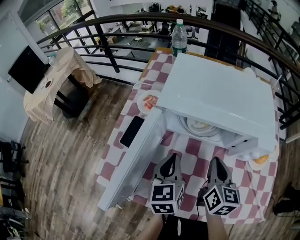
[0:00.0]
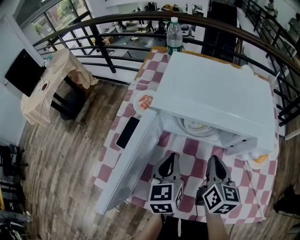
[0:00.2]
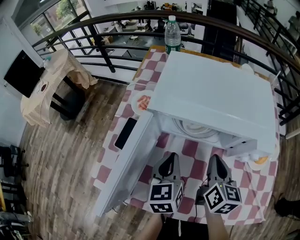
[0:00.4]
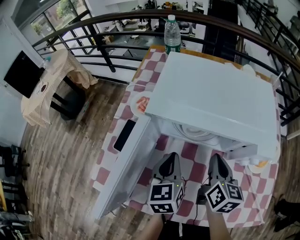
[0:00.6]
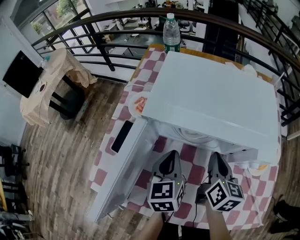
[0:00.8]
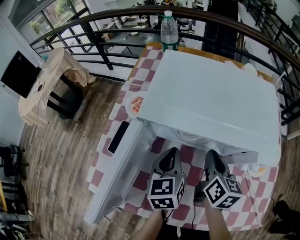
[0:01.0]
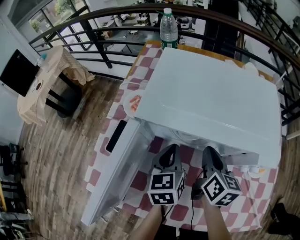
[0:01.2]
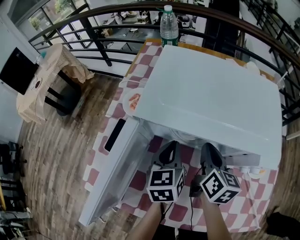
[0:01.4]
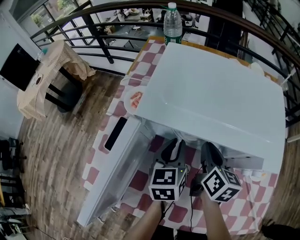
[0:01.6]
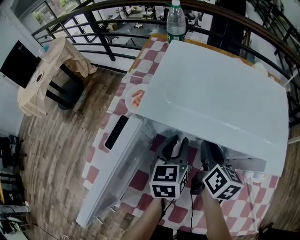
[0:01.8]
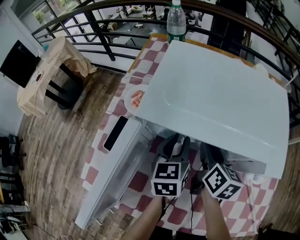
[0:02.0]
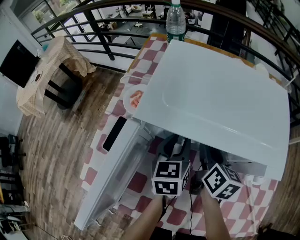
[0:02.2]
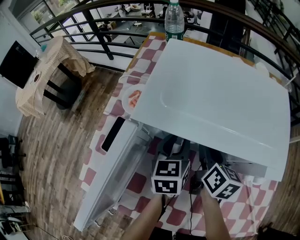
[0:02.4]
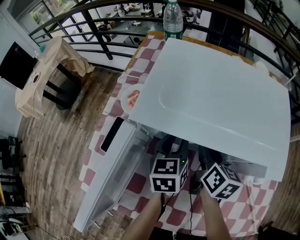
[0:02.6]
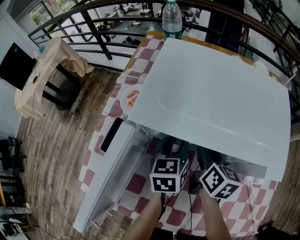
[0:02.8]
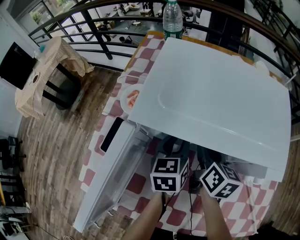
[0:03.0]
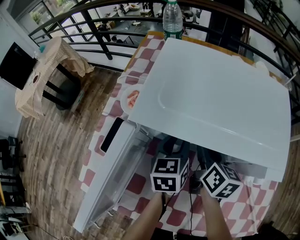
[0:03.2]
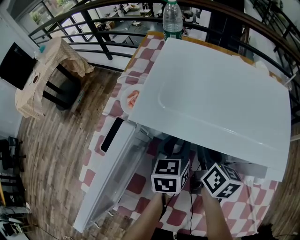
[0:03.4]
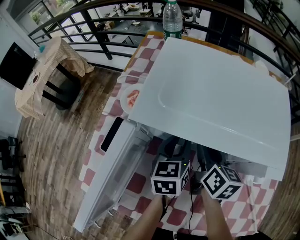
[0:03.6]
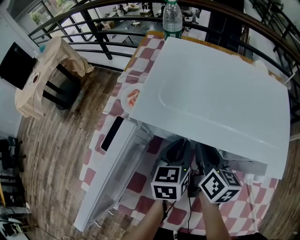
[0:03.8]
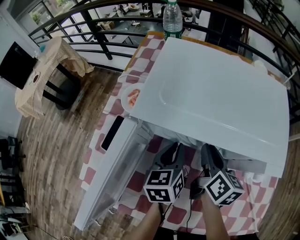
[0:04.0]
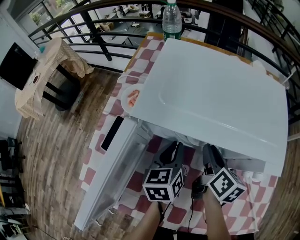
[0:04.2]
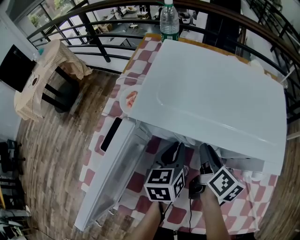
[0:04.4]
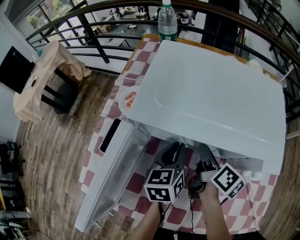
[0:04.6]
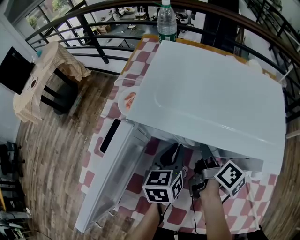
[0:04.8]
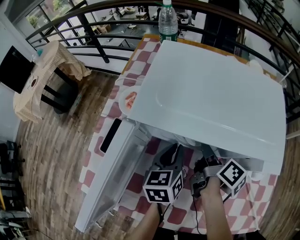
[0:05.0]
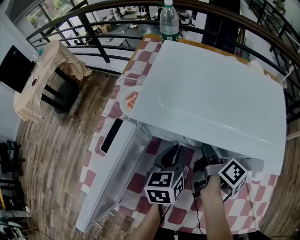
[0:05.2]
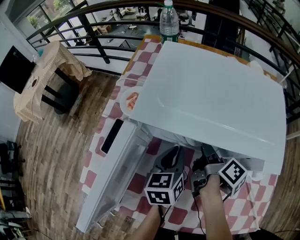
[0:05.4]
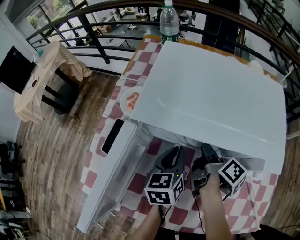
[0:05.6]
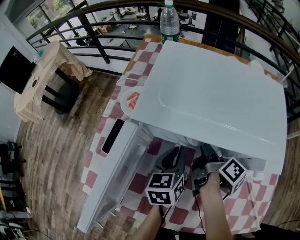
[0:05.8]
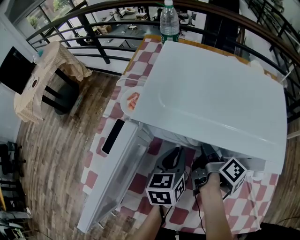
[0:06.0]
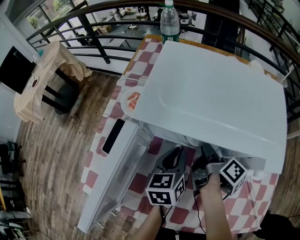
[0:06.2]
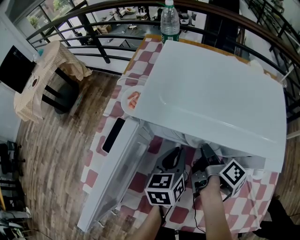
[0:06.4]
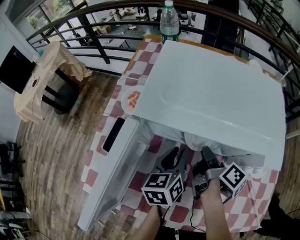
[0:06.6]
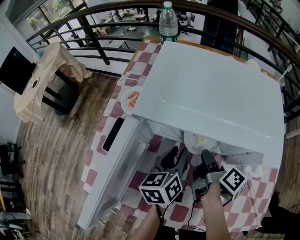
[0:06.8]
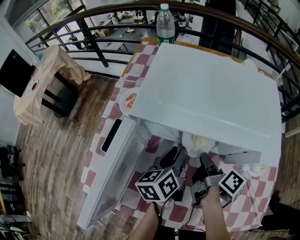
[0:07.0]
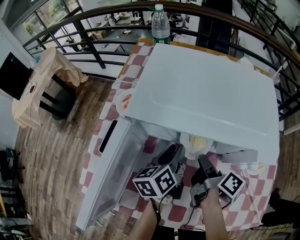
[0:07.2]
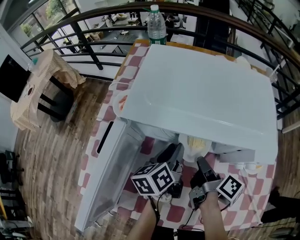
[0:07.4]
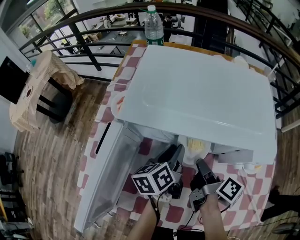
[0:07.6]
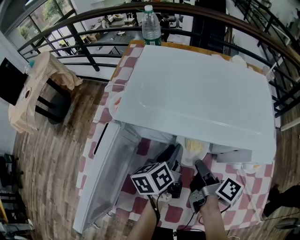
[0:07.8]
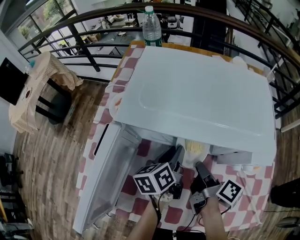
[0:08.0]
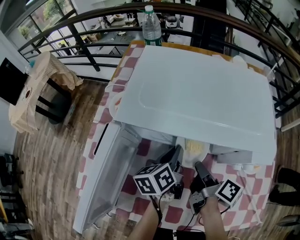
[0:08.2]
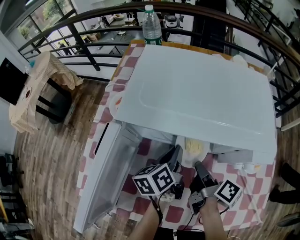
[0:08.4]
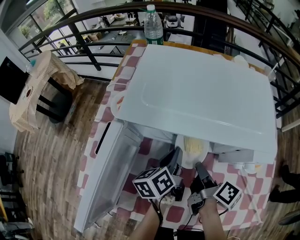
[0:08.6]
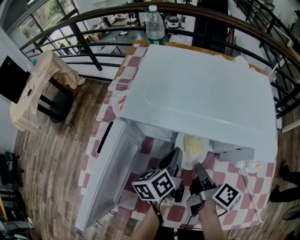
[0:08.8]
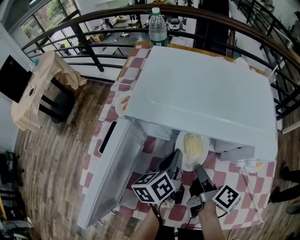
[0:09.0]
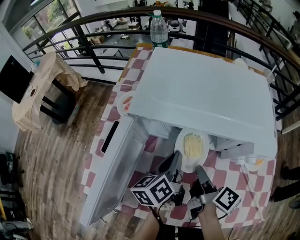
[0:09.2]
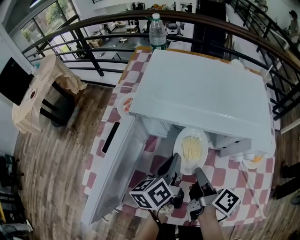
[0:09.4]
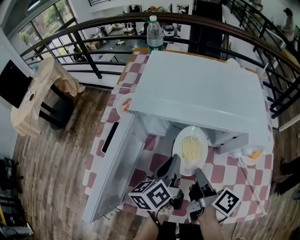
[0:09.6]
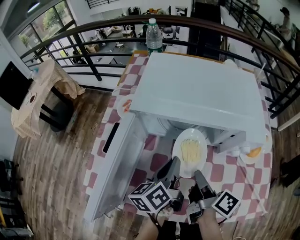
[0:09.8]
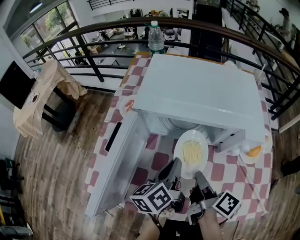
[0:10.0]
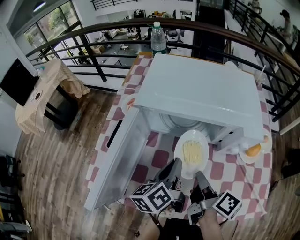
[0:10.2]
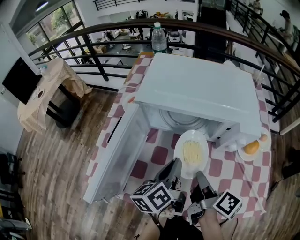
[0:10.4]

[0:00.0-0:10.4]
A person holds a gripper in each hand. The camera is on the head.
0:00.0 to 0:01.4: The grippers both shift forward by roughly 10 cm.
0:01.4 to 0:03.0: The right gripper shifts by some 5 cm, and opens its fingers. Meanwhile the left gripper changes place by about 5 cm, and opens.
0:03.0 to 0:04.4: The grippers move only a little.
0:04.4 to 0:06.0: The right gripper swivels about 40 degrees, and closes its fingers.
0:06.0 to 0:07.4: The right gripper travels backward by roughly 5 cm; the left gripper changes its angle by some 20 degrees.
0:07.4 to 0:09.0: The left gripper closes its fingers.
0:09.0 to 0:10.4: Both grippers move backward and upward, some 10 cm.

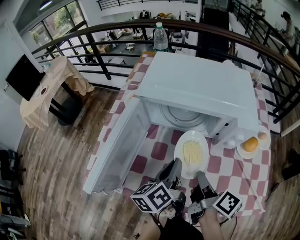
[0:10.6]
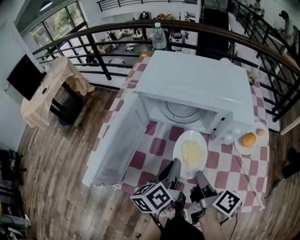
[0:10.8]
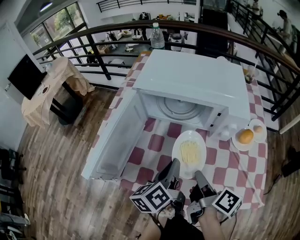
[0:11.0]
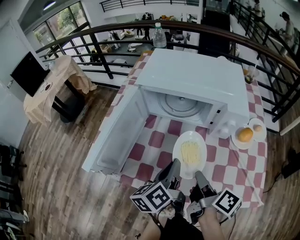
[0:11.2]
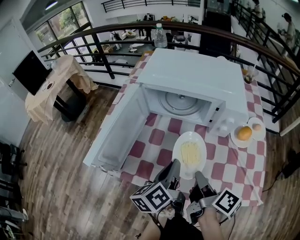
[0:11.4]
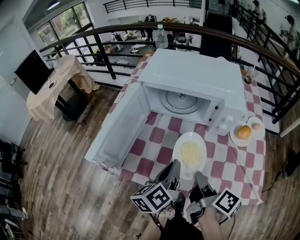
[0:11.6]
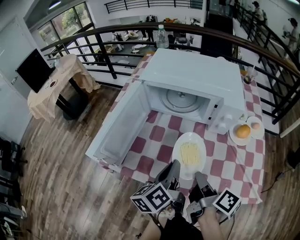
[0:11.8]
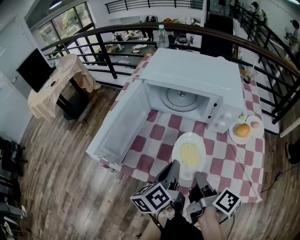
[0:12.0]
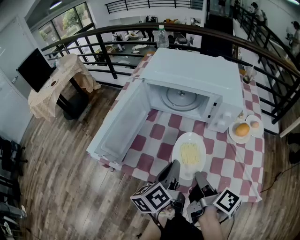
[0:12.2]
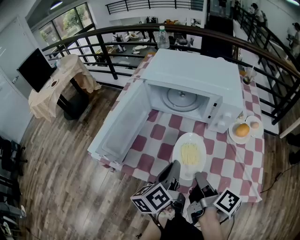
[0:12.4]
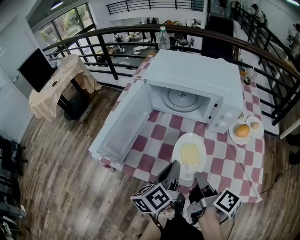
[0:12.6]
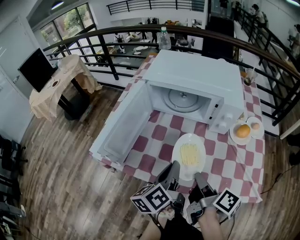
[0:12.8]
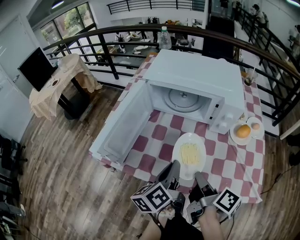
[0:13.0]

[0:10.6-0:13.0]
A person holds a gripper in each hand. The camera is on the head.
0:10.6 to 0:11.8: Both grippers travel together backward, some 10 cm.
0:11.8 to 0:13.0: The grippers make only small movements.

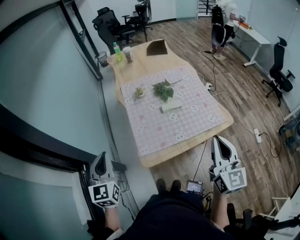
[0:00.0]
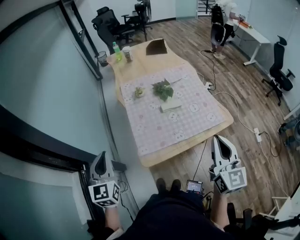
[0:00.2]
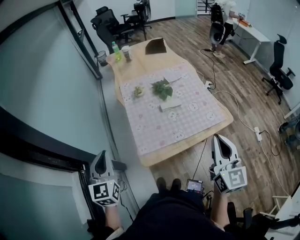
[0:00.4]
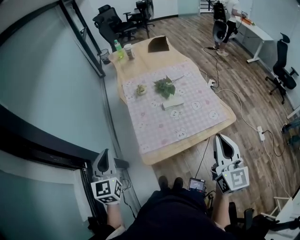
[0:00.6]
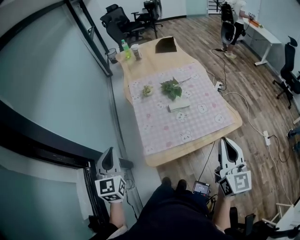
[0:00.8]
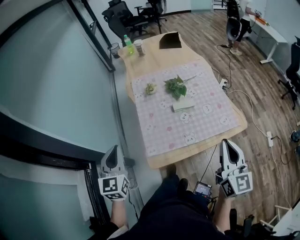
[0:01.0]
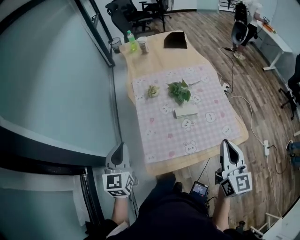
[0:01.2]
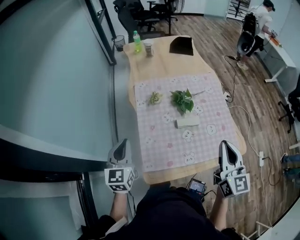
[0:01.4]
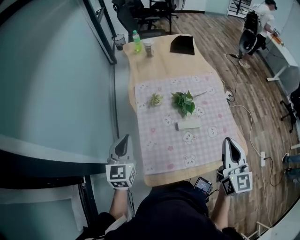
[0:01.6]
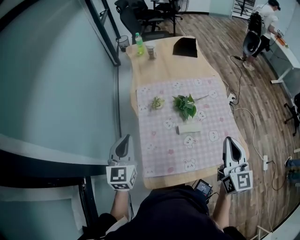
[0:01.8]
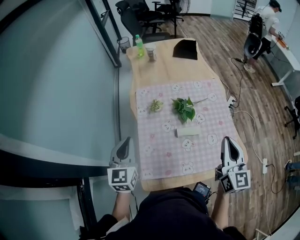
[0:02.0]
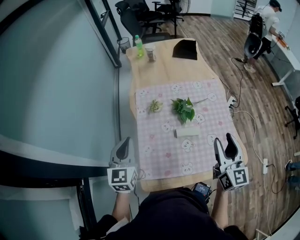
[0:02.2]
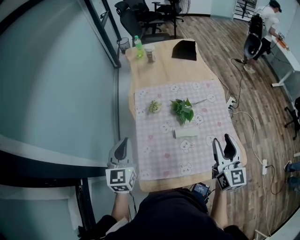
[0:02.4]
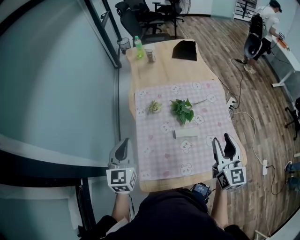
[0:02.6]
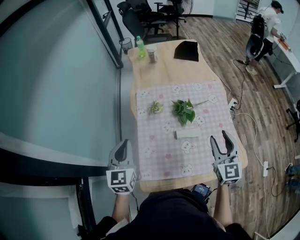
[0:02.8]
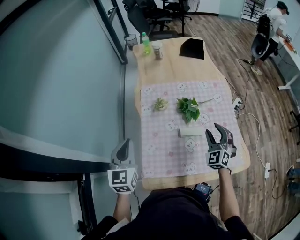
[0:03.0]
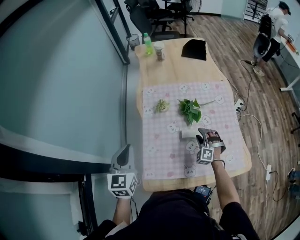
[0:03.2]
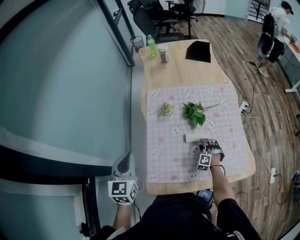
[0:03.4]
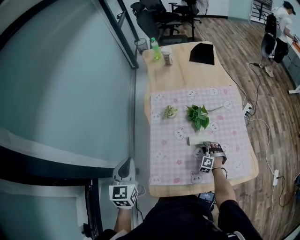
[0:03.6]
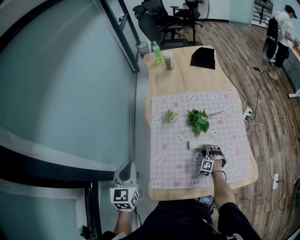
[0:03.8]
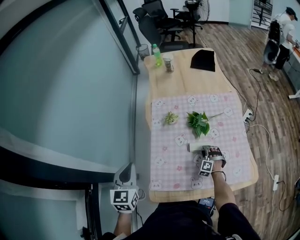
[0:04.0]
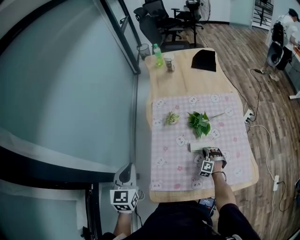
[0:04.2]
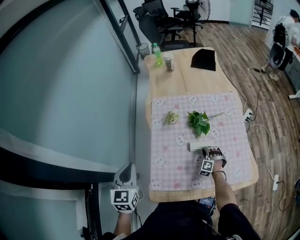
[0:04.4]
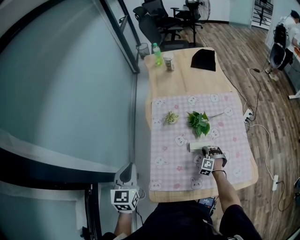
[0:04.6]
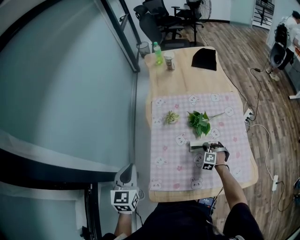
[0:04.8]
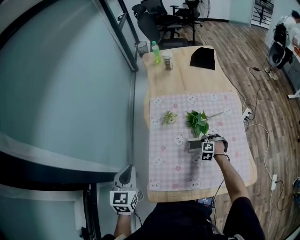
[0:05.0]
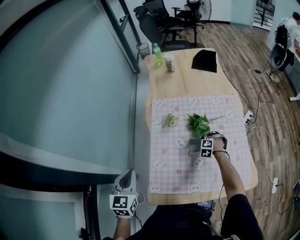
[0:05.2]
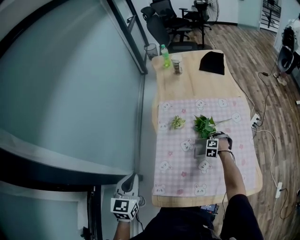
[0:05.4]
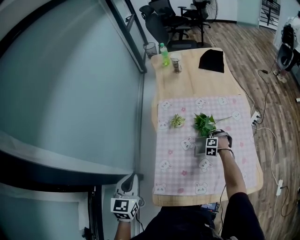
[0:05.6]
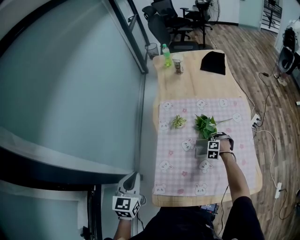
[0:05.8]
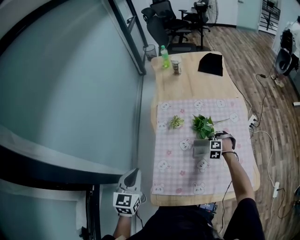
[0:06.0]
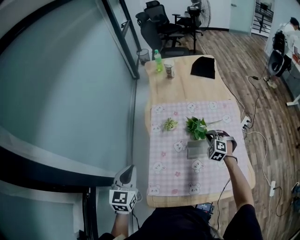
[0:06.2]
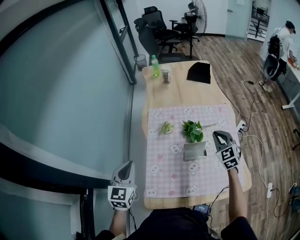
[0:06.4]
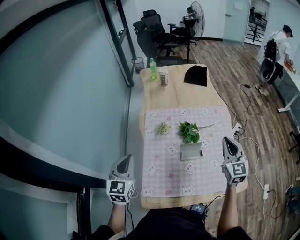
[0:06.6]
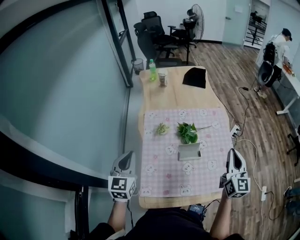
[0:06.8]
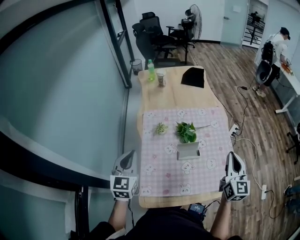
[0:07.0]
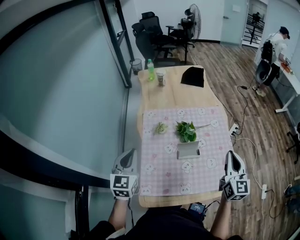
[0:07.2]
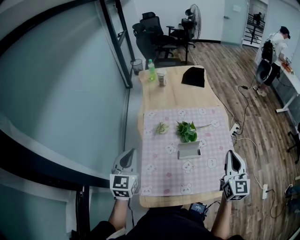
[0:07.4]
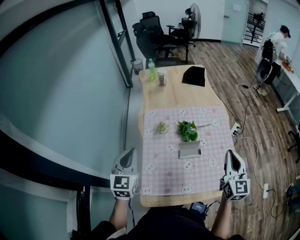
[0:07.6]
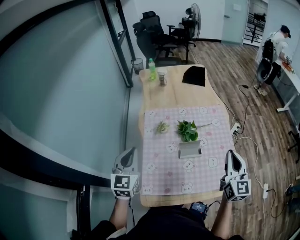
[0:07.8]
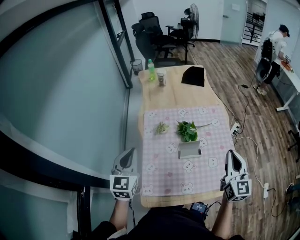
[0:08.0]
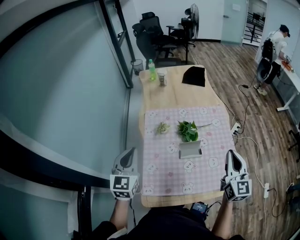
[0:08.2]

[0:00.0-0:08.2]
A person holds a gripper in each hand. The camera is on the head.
0:00.0 to 0:01.6: Both grippers move forward, approximately 25 cm.
0:01.6 to 0:03.2: The right gripper heads downward and forward, covering roughly 35 cm, rolls counterclockwise, seen from behind, by about 70 degrees, and opens its fingers.
0:03.2 to 0:05.0: The right gripper goes roughly 10 cm downward and forward, changes its angle by about 30 degrees, and closes its fingers.
0:05.0 to 0:06.6: The left gripper changes place by roughly 5 cm. Meanwhile the right gripper is displaced upward by approximately 35 cm, and tips its fingers upward by about 50 degrees.
0:06.6 to 0:08.2: The right gripper heads backward, covering approximately 10 cm.

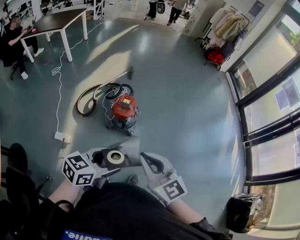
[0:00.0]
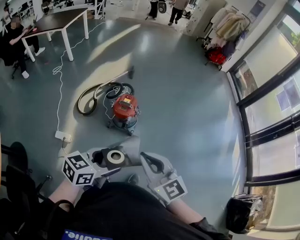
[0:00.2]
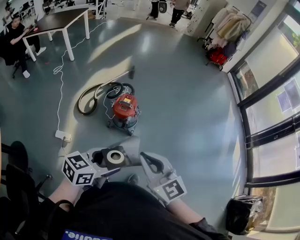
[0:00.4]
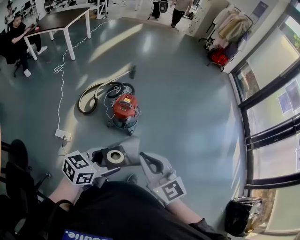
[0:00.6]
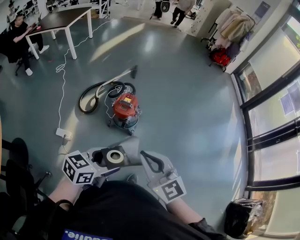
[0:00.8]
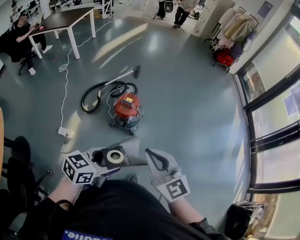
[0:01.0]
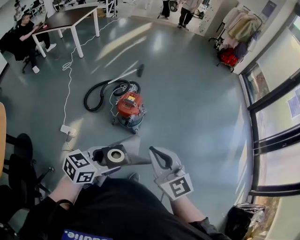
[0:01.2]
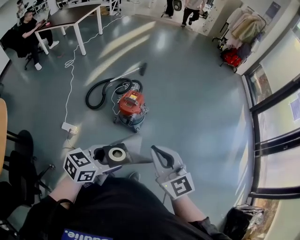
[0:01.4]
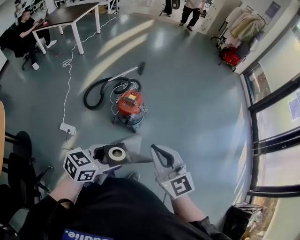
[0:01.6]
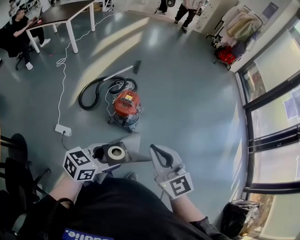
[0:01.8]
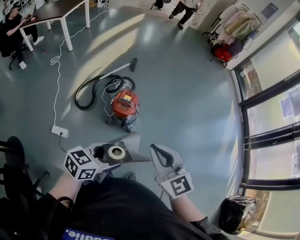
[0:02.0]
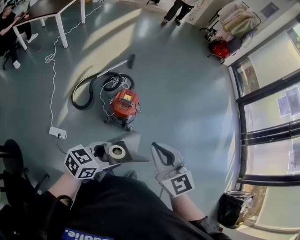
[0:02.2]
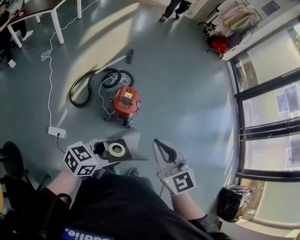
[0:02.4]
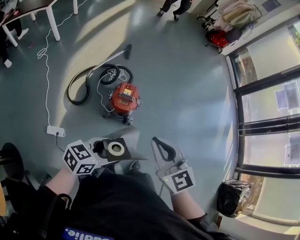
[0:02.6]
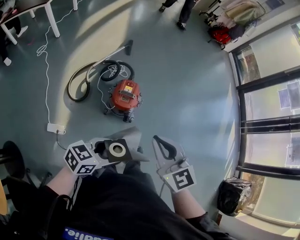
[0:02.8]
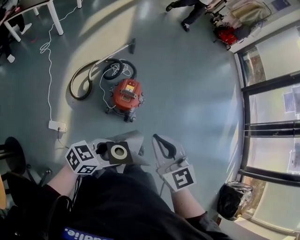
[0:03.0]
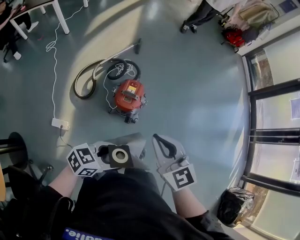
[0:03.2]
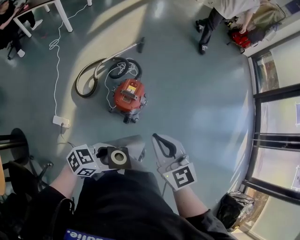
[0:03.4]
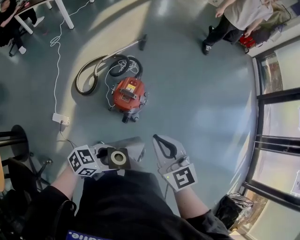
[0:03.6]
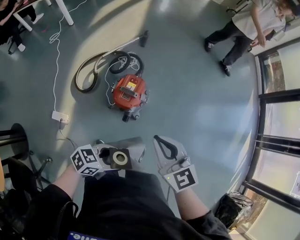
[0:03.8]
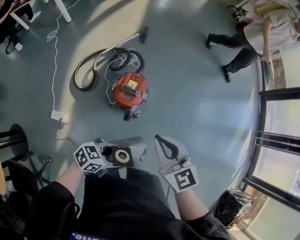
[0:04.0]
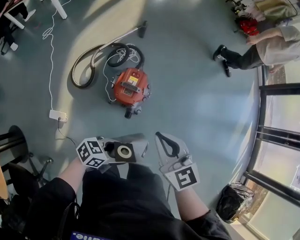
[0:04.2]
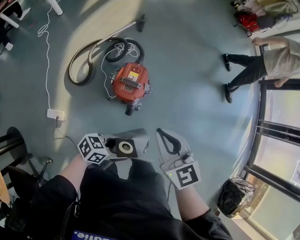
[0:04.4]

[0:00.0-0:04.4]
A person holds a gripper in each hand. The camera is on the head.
0:00.0 to 0:01.4: The right gripper is displaced to the right and forward by about 10 cm. The left gripper goes some 5 cm to the right.
0:01.4 to 0:03.0: The left gripper travels to the left, forward and downward by some 20 cm, and turns by some 20 degrees. The right gripper moves to the left and forward, approximately 20 cm.
0:03.0 to 0:04.4: The grippers both shift downward by some 15 cm.
